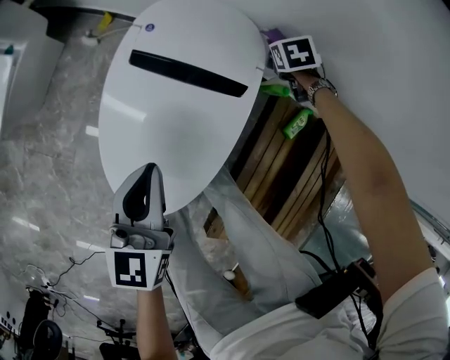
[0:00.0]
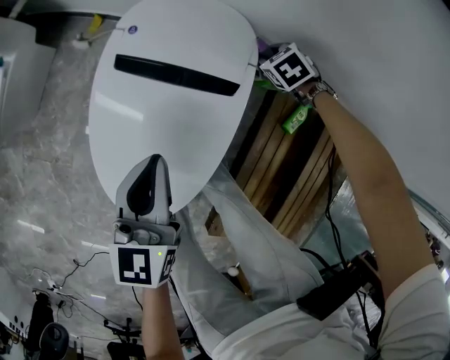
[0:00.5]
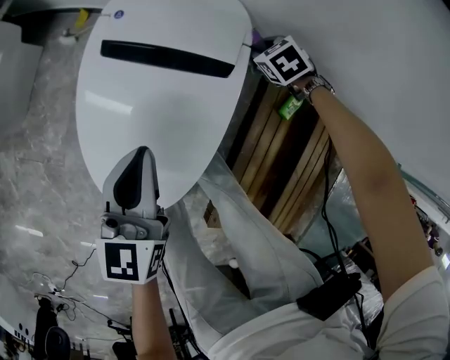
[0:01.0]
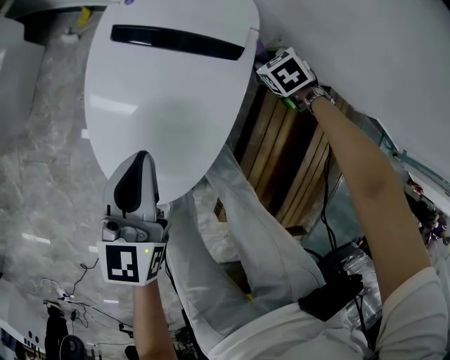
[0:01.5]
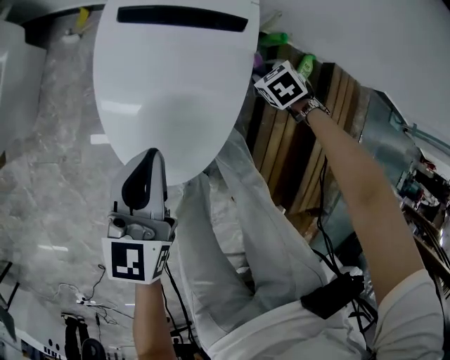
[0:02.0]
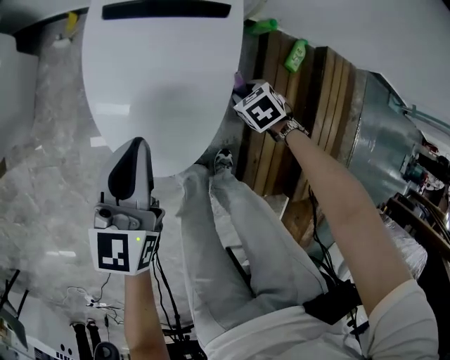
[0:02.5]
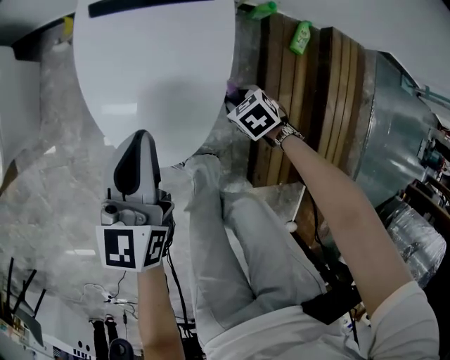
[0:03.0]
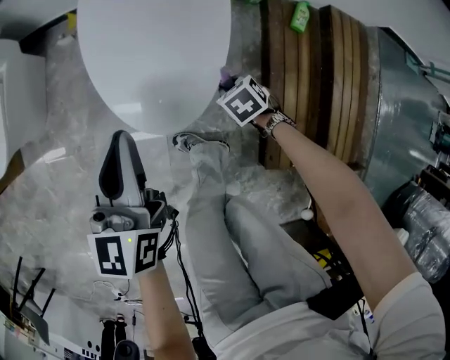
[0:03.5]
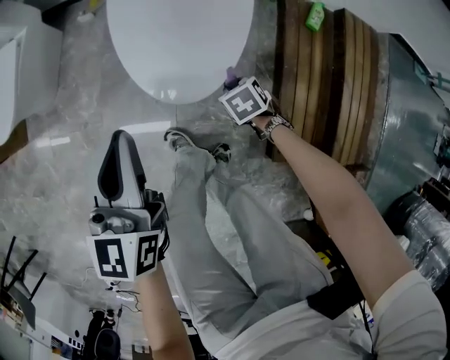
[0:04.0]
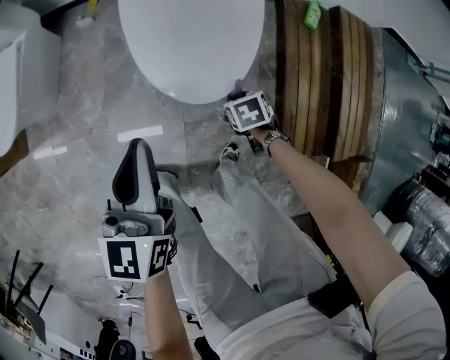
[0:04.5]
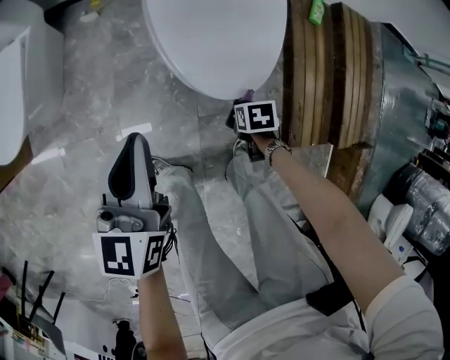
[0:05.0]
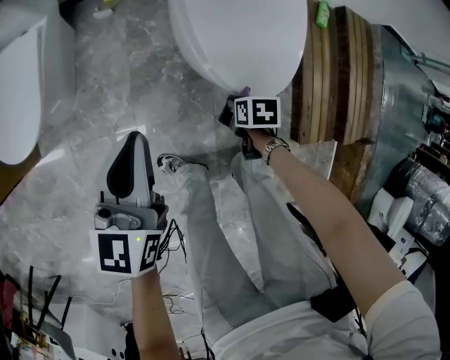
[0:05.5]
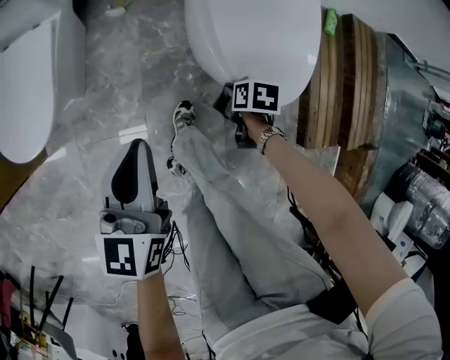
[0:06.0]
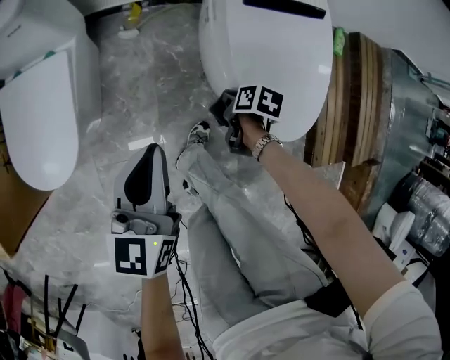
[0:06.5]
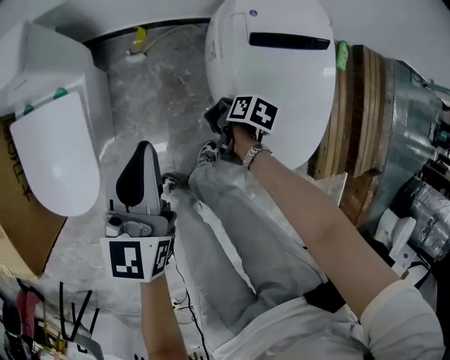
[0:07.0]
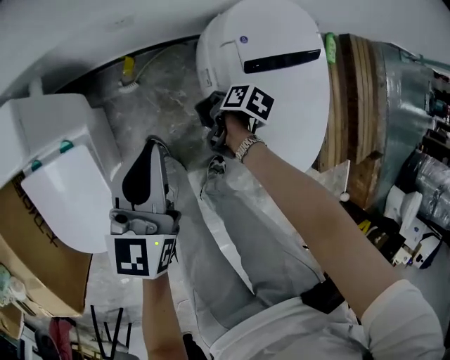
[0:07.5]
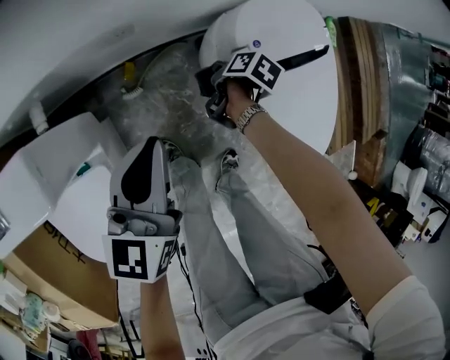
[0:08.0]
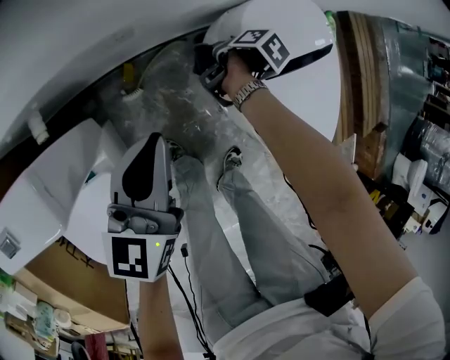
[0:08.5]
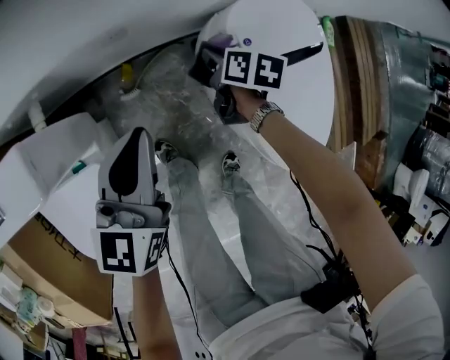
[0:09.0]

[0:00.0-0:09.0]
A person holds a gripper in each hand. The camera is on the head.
0.0 to 2.0 s: The right gripper ends up some 30 cm from where it was, while the left gripper ends up approximately 10 cm from where it was.
2.0 to 4.5 s: The right gripper ends up approximately 40 cm from where it was, and swivels roughly 40 degrees; the left gripper moves approximately 25 cm.
4.5 to 7.0 s: Both grippers are carried some 40 cm. The right gripper twists about 60 degrees clockwise, seen from behind.
7.0 to 9.0 s: The right gripper shifts by approximately 30 cm, and changes its angle by approximately 20 degrees; the left gripper changes place by about 20 cm.

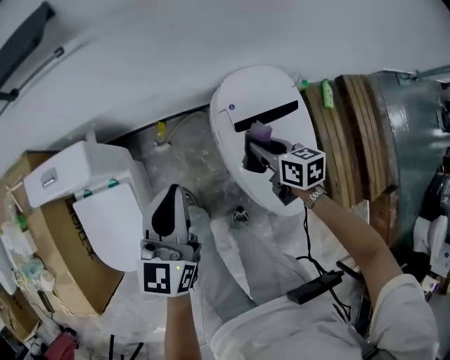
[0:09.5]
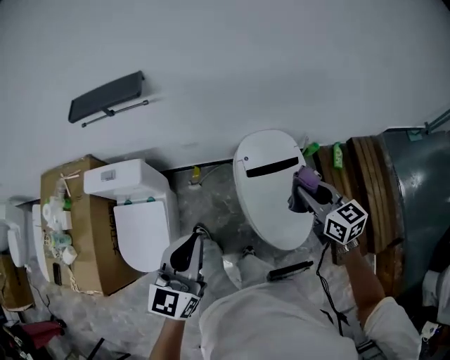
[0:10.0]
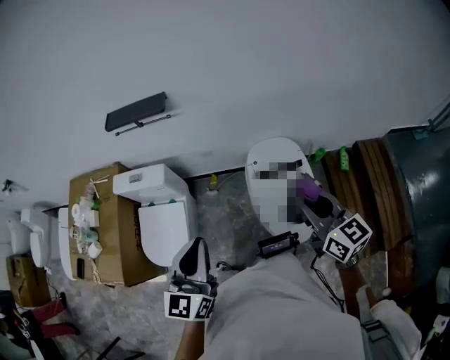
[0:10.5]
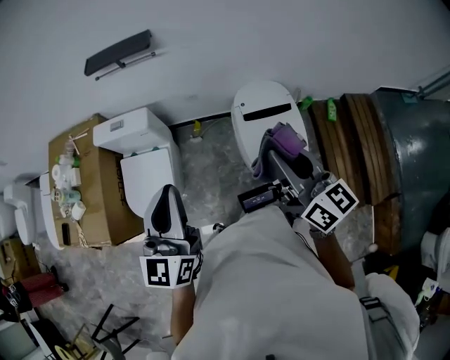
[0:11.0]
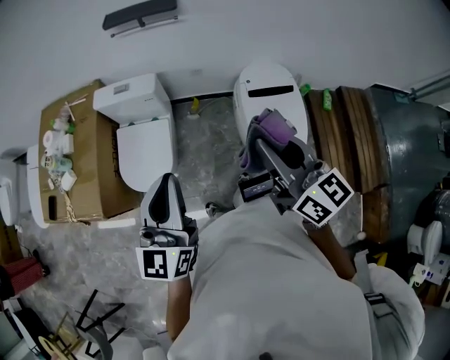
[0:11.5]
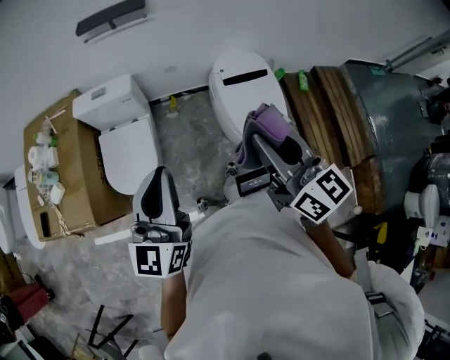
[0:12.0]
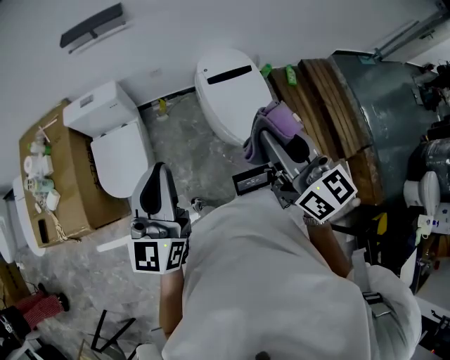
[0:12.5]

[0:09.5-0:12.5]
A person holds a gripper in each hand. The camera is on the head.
9.5 to 11.0 s: The grippers both shift upward and backward by about 50 cm. The left gripper turns by approximately 20 degrees. Meanwhile the right gripper angles its fingers upward, by approximately 40 degrees.
11.0 to 12.5 s: The two grippers go roughly 15 cm backward.

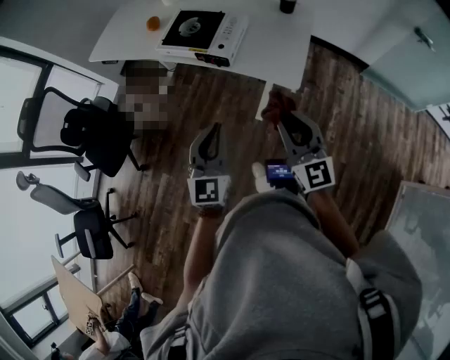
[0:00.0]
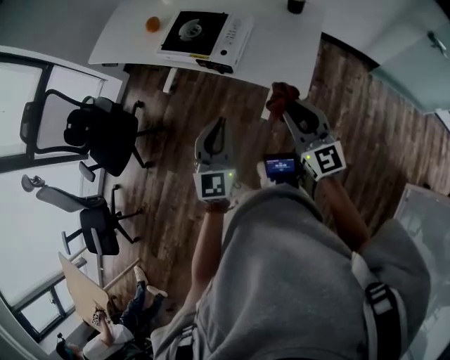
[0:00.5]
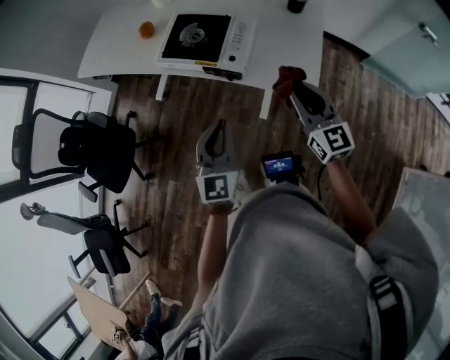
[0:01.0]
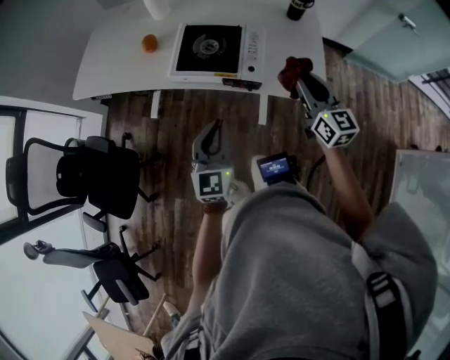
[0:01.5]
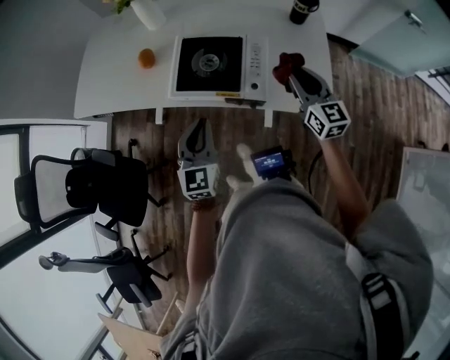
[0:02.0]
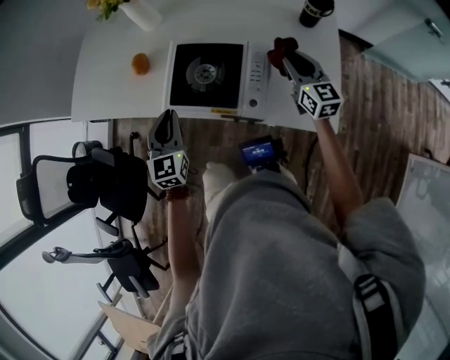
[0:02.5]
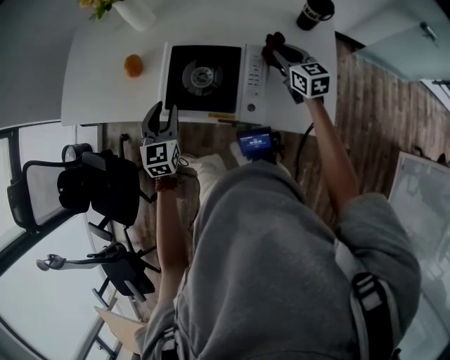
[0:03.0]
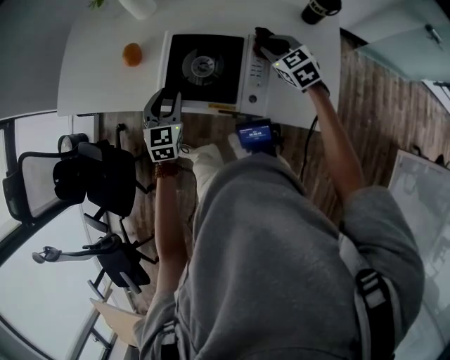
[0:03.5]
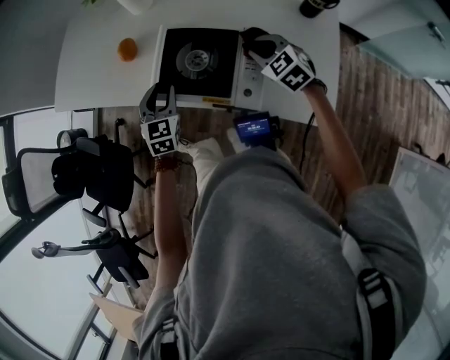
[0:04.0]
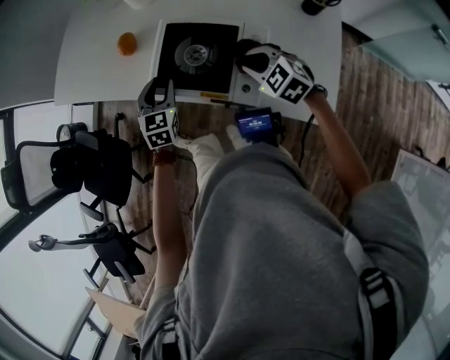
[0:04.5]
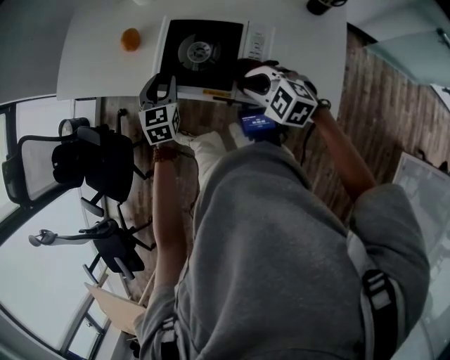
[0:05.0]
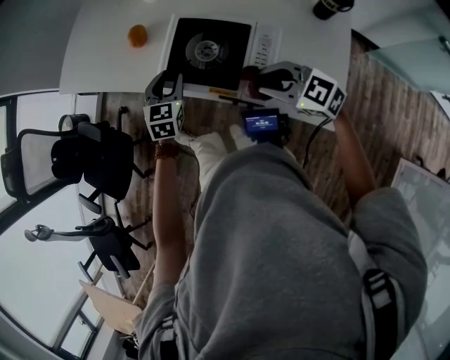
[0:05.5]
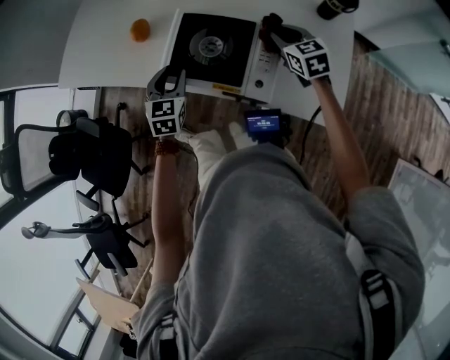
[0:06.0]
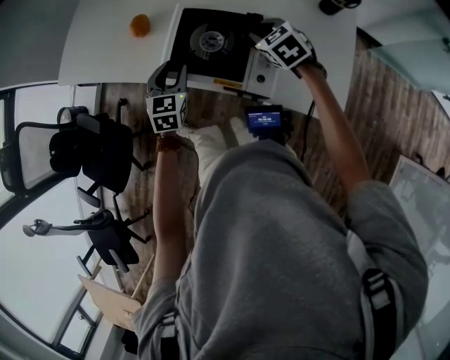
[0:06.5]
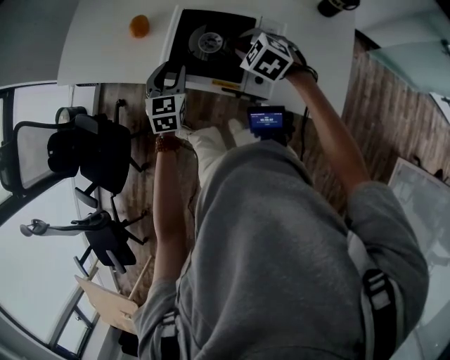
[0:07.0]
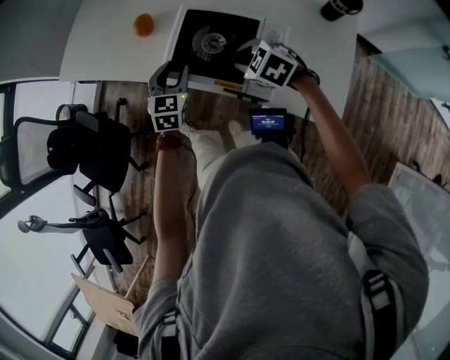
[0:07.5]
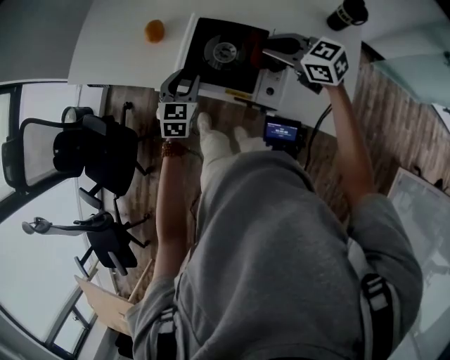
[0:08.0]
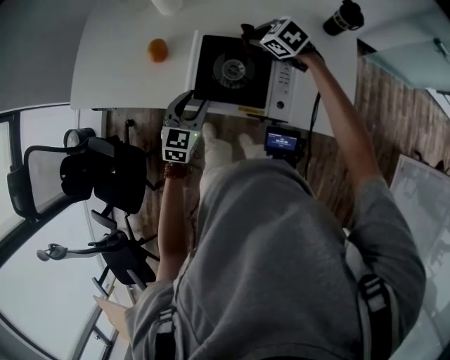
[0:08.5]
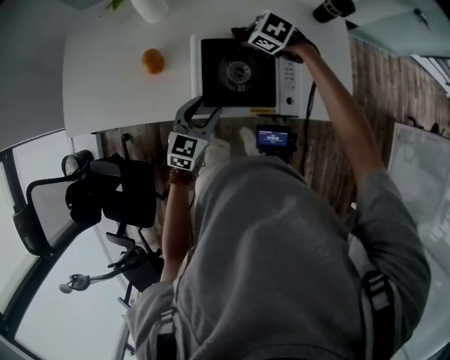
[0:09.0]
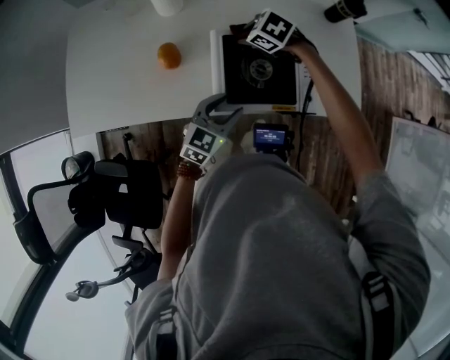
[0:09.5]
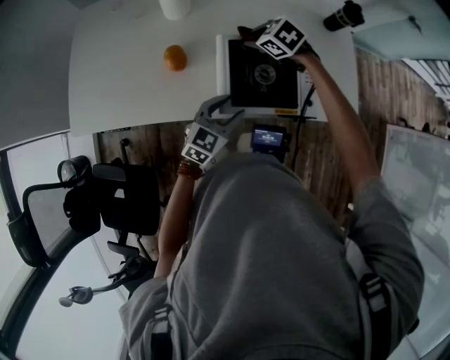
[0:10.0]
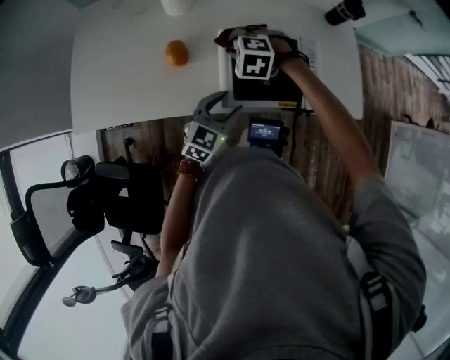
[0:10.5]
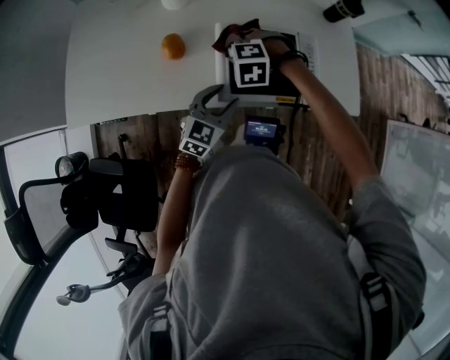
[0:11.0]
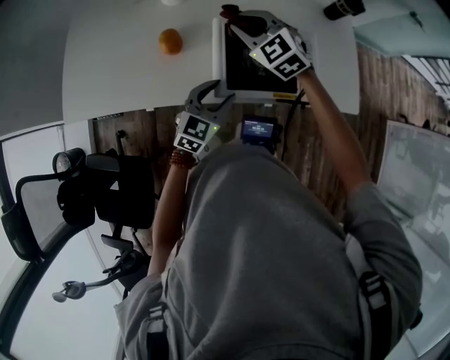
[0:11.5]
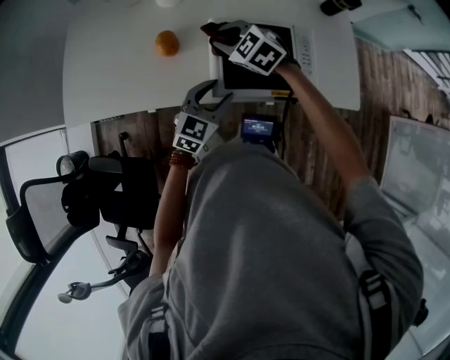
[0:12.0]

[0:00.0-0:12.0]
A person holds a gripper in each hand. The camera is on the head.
0.0 to 2.0 s: The right gripper is displaced forward by about 30 cm, and turns by approximately 20 degrees, while the left gripper shifts roughly 30 cm forward and to the left.
2.0 to 4.0 s: The left gripper travels forward and downward by roughly 20 cm, swivels approximately 20 degrees, and opens up. The right gripper shifts approximately 20 cm forward, downward and to the left, and points its fingers roughly 30 degrees further downward.
4.0 to 6.0 s: The right gripper goes backward and returns, about 10 cm each way, and changes its angle by some 20 degrees.
6.0 to 8.0 s: The right gripper shifts some 10 cm to the left and upward, and turns by about 30 degrees.
8.0 to 10.0 s: The right gripper ends up roughly 20 cm from where it was, and tips its fingers downward by about 40 degrees. The left gripper rotates about 50 degrees.
10.0 to 12.0 s: The right gripper heads backward and to the left, covering roughly 10 cm, goes upward and returns, about 10 cm each way, and turns by roughly 20 degrees.

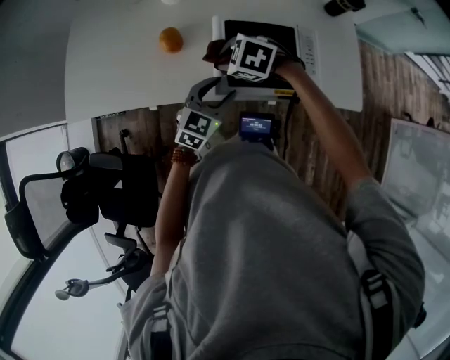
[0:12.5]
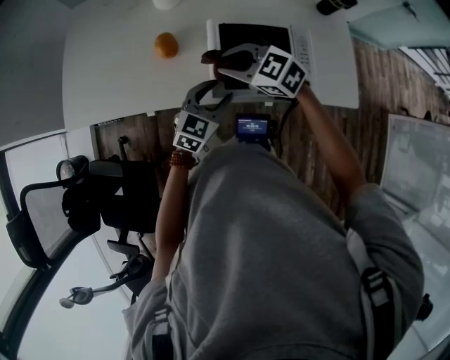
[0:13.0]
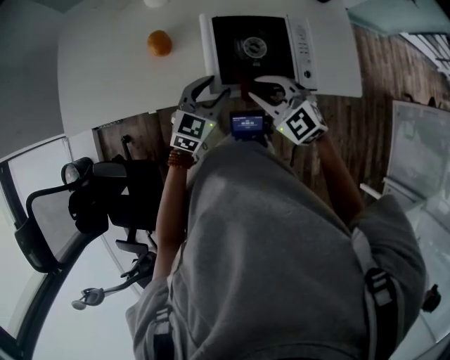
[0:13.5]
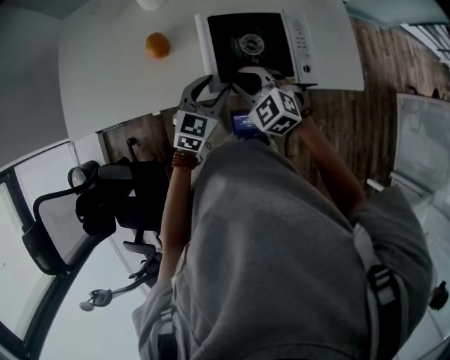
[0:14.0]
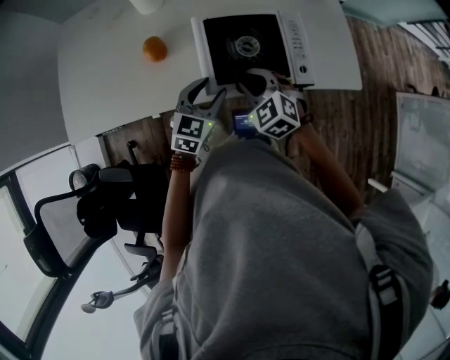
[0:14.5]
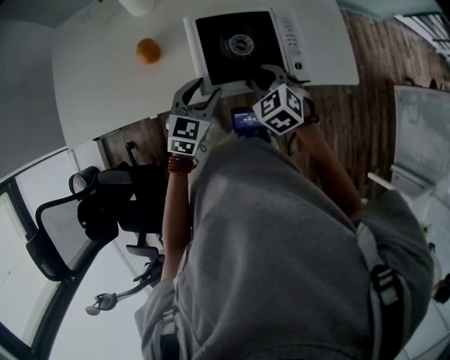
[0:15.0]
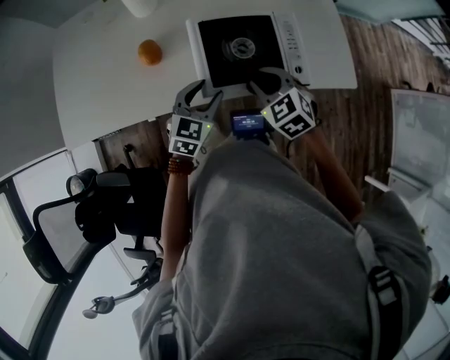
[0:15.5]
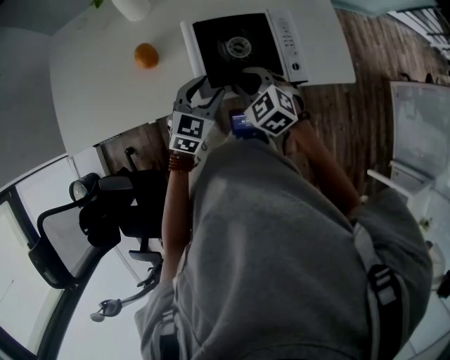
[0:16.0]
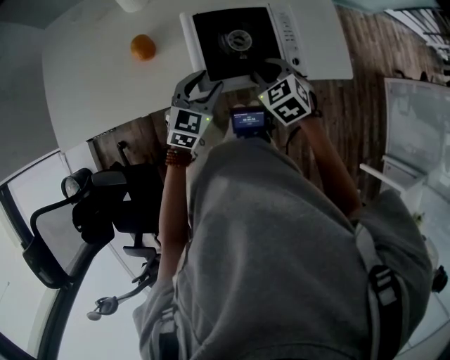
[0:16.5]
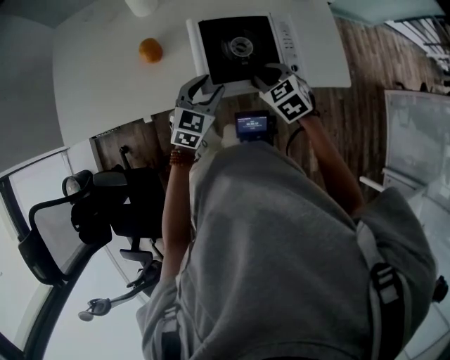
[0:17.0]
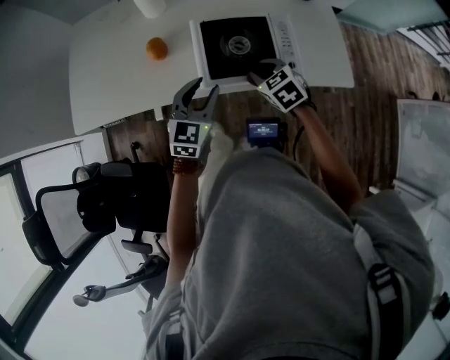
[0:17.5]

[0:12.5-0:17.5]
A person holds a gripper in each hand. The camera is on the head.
12.5 to 15.0 s: The right gripper moves roughly 15 cm, and changes its angle by approximately 40 degrees.
15.0 to 17.5 s: The left gripper heads upward, covering roughly 5 cm.
